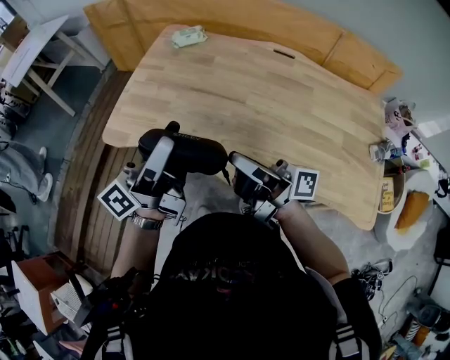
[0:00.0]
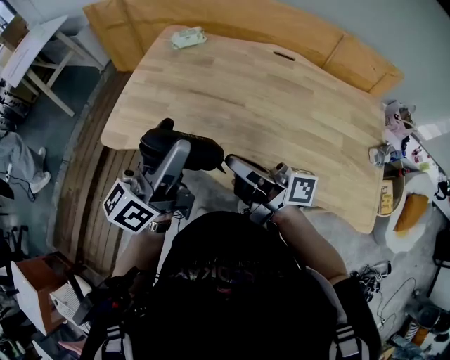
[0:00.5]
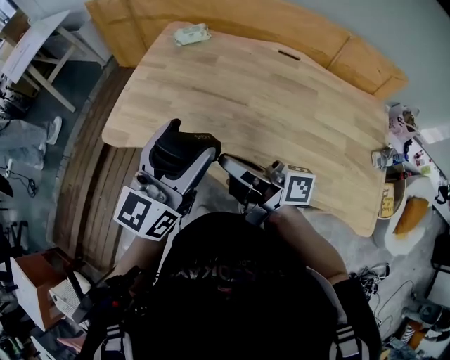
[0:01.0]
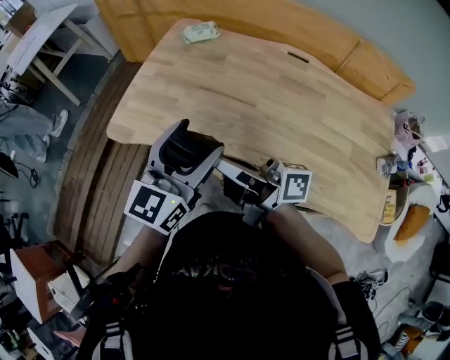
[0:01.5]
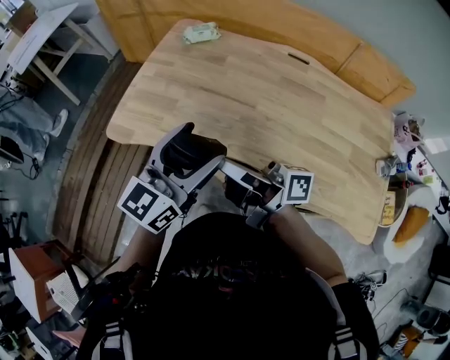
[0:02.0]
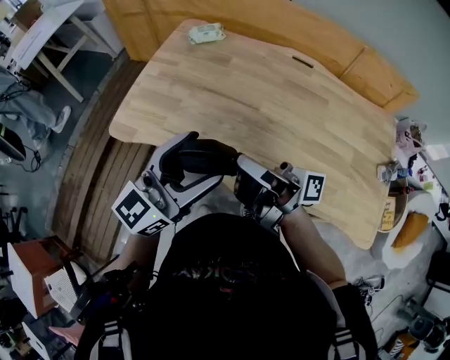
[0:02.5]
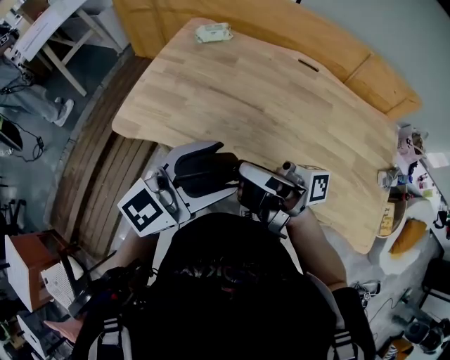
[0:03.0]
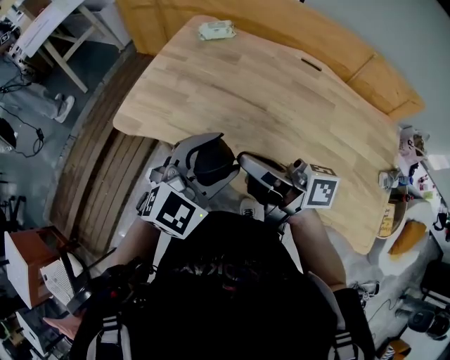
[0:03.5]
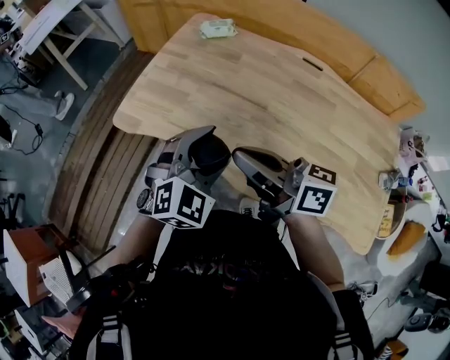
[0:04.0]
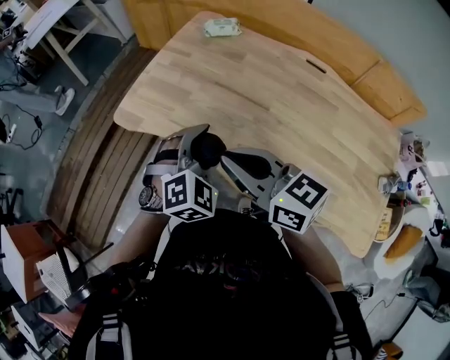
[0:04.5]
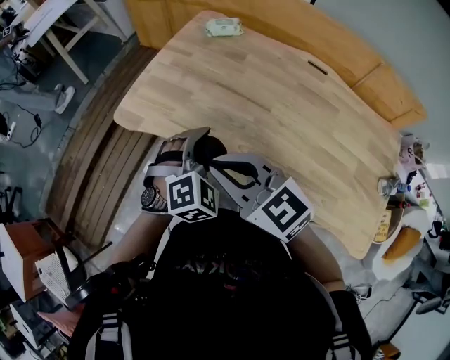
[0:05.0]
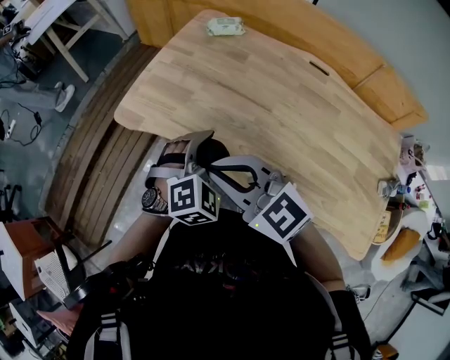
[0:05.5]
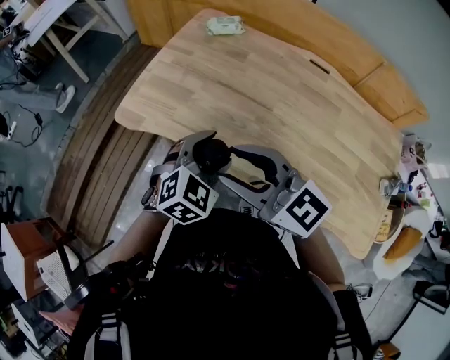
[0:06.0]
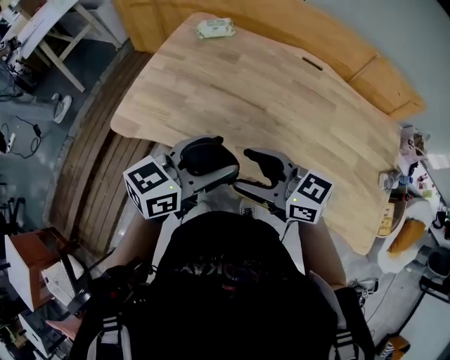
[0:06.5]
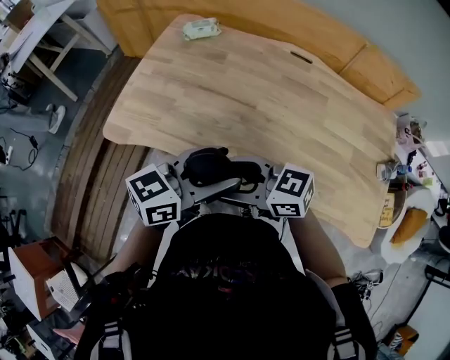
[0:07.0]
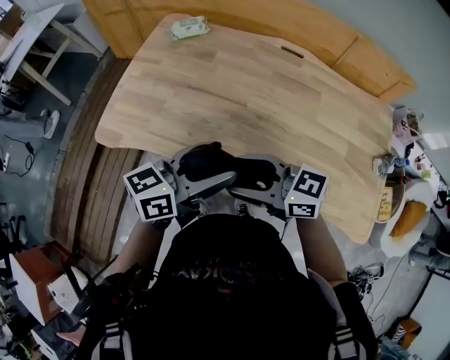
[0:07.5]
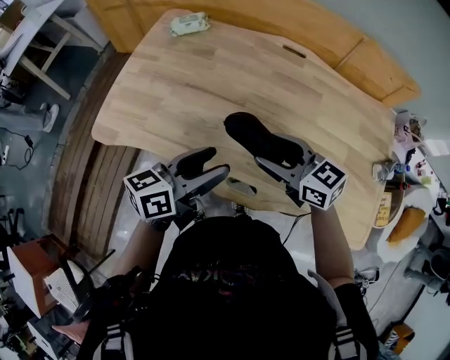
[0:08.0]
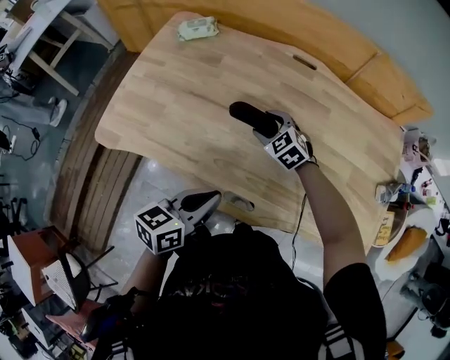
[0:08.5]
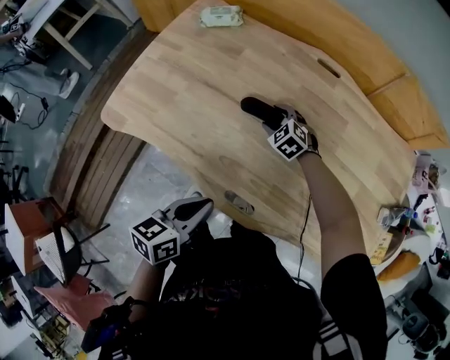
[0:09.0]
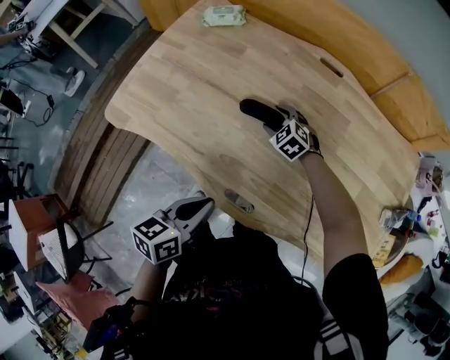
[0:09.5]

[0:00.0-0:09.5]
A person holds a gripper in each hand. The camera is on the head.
0:00.0 to 0:02.0: The left gripper changes place by approximately 5 cm, and rotates around the line of its fingers by roughly 50 degrees, clockwise from behind.
0:02.0 to 0:04.0: The right gripper changes its angle by some 30 degrees. Meanwhile the left gripper travels downward by about 5 cm, and rotates around the line of its fingers by some 40 degrees, clockwise from behind.
0:04.0 to 0:05.5: The left gripper shifts approximately 5 cm downward; the right gripper travels to the left by some 5 cm, and rotates around the line of its fingers by approximately 50 degrees, counterclockwise from behind.
0:05.5 to 0:07.5: The left gripper moves approximately 10 cm, and tips its fingers upward by roughly 40 degrees; the right gripper shifts by about 10 cm, swivels roughly 40 degrees, and opens.
0:07.5 to 0:09.5: The right gripper ends up about 40 cm from where it was, and tilts its fingers approximately 40 degrees downward. Meanwhile the left gripper shifts approximately 10 cm downward, rotates approximately 40 degrees, and closes.

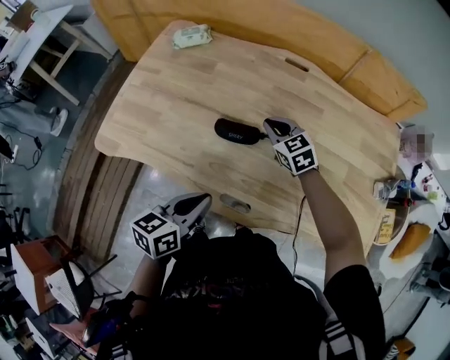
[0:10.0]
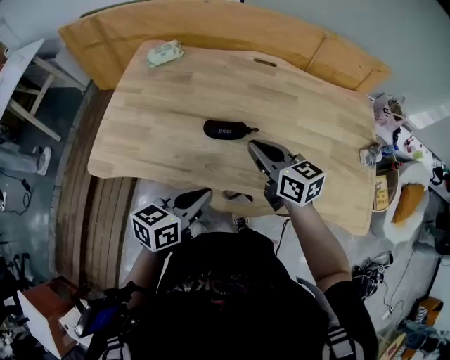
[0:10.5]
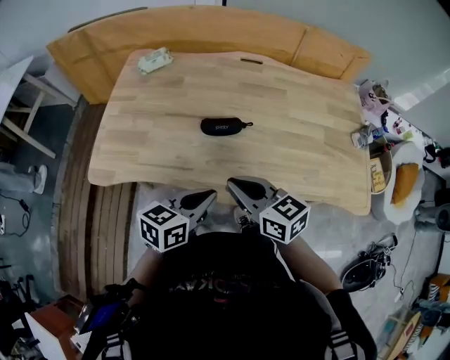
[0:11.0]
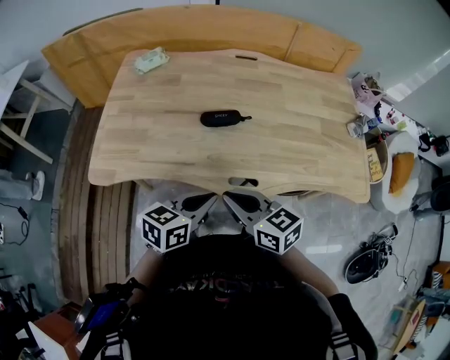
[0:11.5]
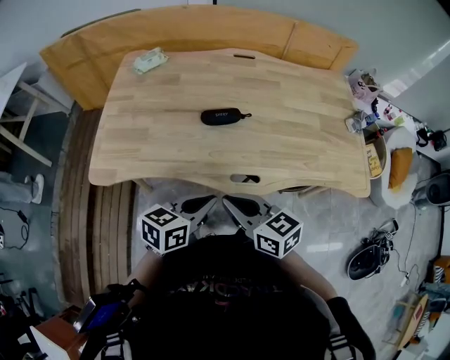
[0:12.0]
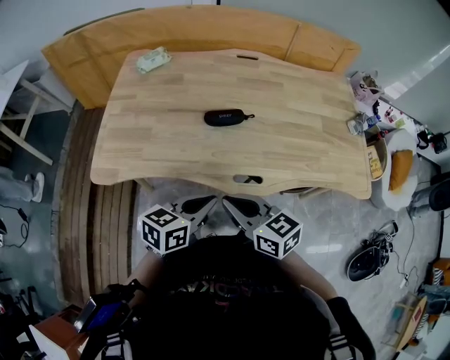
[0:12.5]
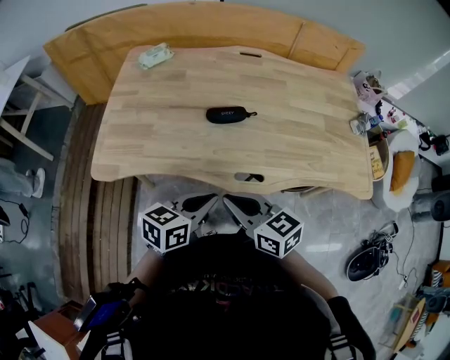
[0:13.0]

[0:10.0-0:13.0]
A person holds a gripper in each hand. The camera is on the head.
0:10.0 to 0:11.5: The left gripper heads backward, covering roughly 5 cm, and changes its angle by about 30 degrees, while the right gripper heads backward, covering some 30 cm, and turns by some 30 degrees.
0:11.5 to 0:13.0: There are only small adjustments of the grippers.

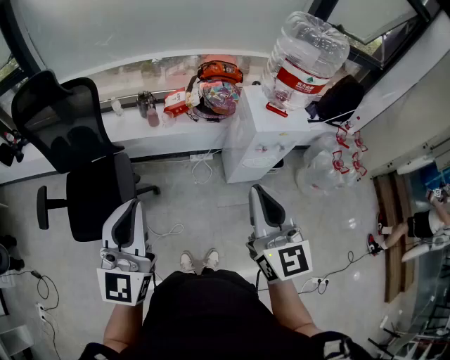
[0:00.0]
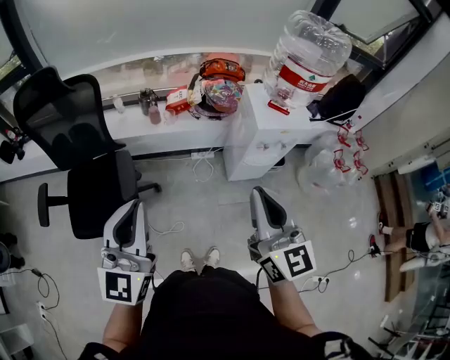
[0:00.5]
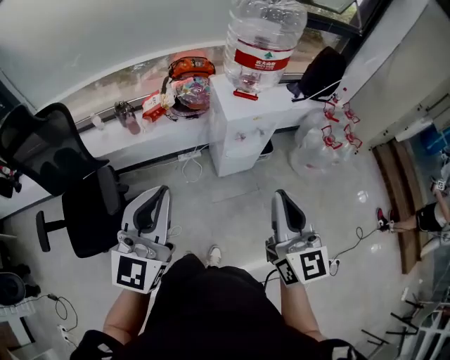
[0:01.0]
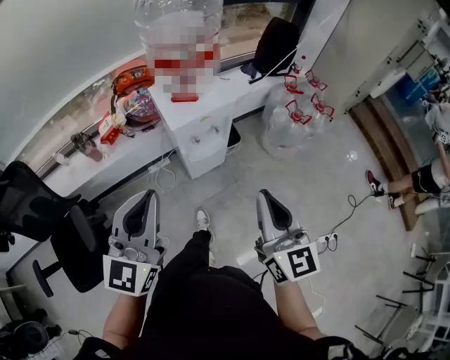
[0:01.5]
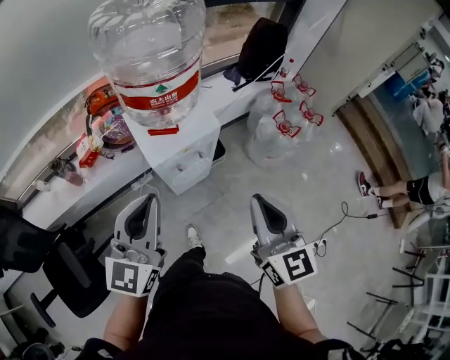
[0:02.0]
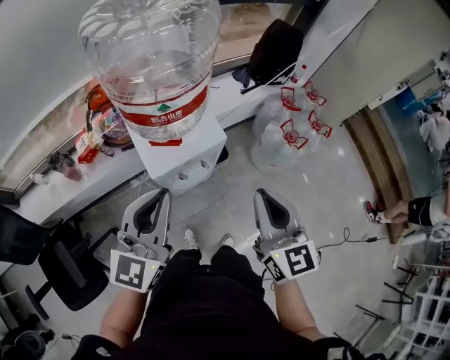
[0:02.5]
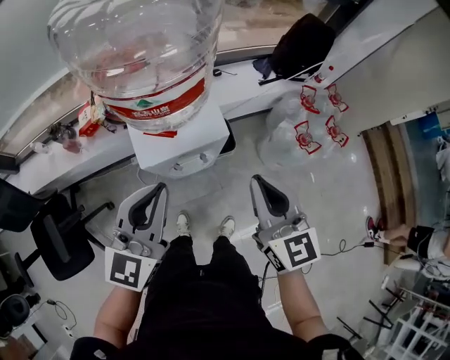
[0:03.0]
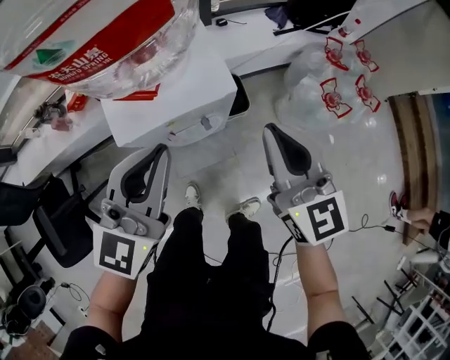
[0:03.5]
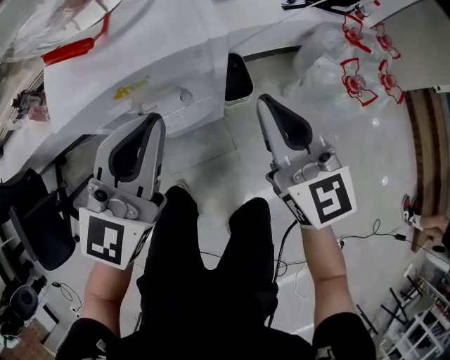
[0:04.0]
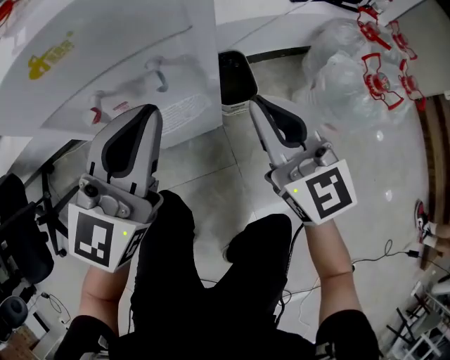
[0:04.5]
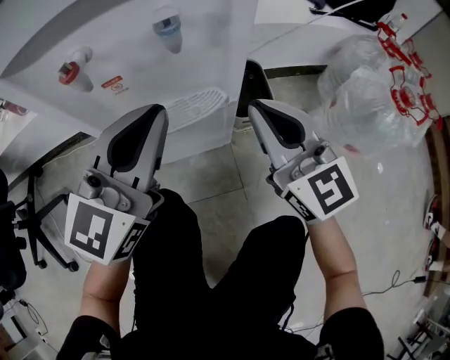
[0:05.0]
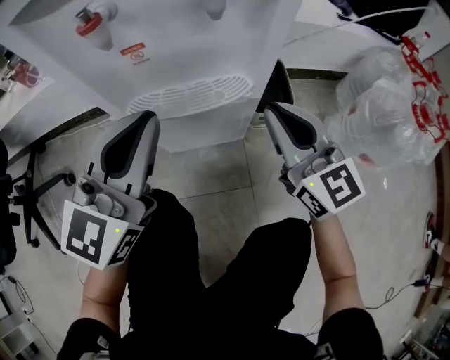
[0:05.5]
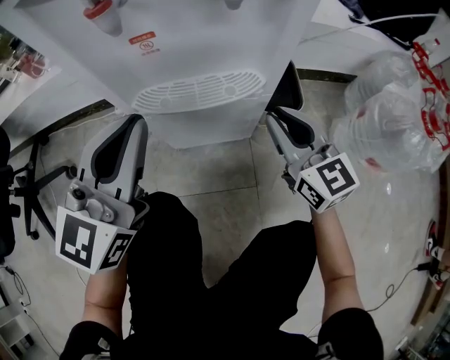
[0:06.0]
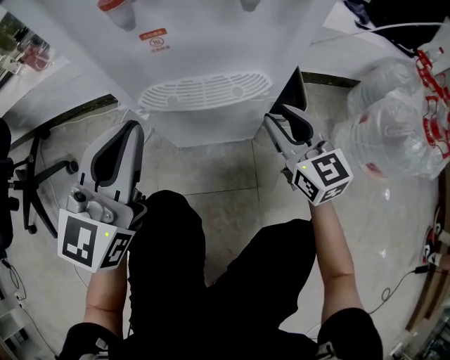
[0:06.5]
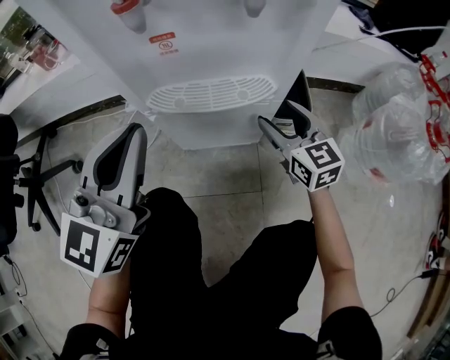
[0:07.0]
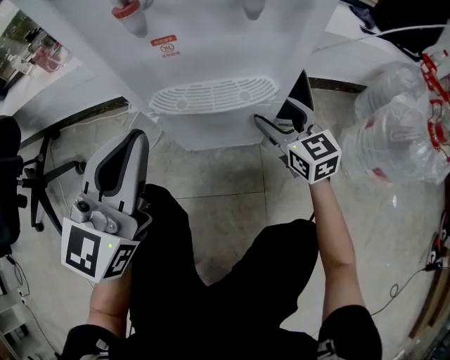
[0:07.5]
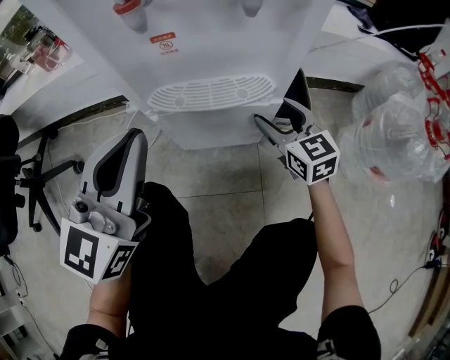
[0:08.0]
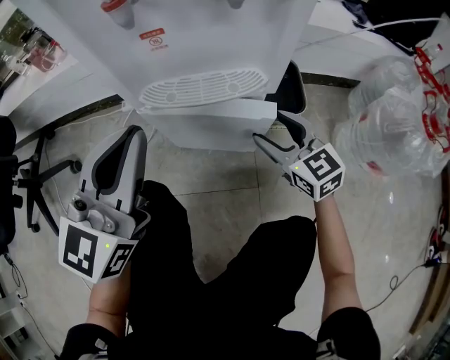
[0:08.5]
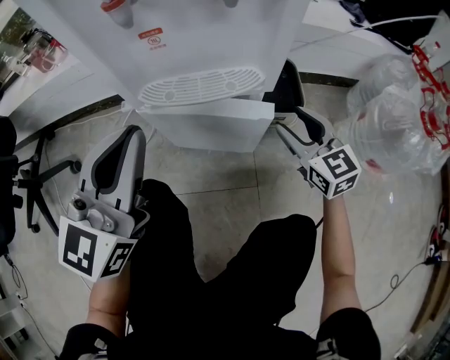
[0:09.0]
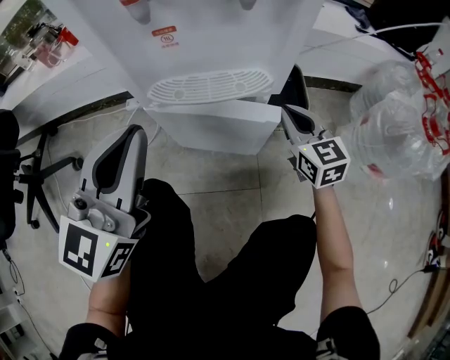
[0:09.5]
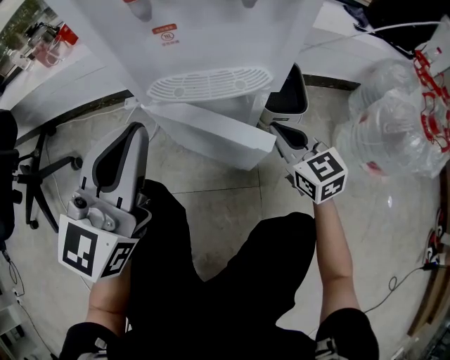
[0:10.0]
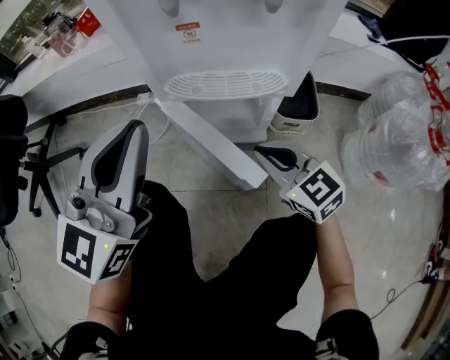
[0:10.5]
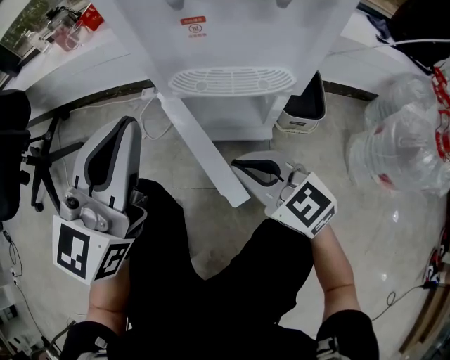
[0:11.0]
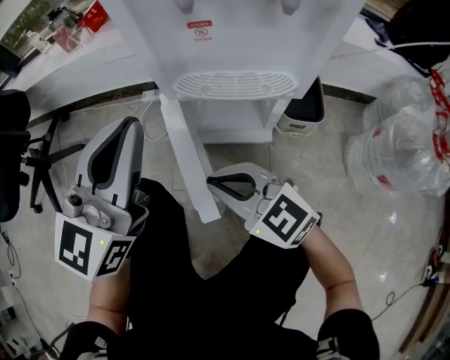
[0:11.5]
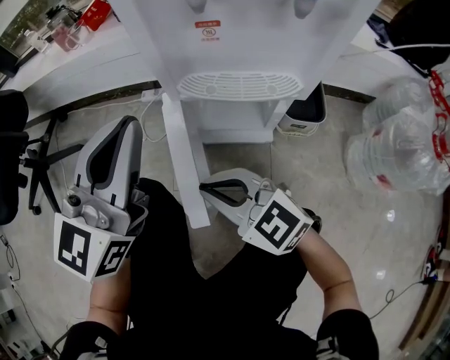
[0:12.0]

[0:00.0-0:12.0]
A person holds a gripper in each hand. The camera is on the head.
0:00.0 to 0:02.0: The right gripper changes place by approximately 35 cm, and changes its angle by some 30 degrees. The left gripper changes place by approximately 40 cm, and turns by roughly 30 degrees.
0:02.0 to 0:04.0: The left gripper travels downward, forward and to the right by roughly 35 cm. The right gripper is displaced downward and forward by roughly 35 cm, and turns by some 20 degrees.
0:04.0 to 0:06.0: Both grippers travel together downward, about 30 cm.
0:06.0 to 0:08.0: The right gripper heads downward and forward, covering roughly 10 cm, and opens its fingers.
0:08.0 to 0:10.0: The right gripper heads backward, covering approximately 5 cm, and closes its fingers.
0:10.0 to 0:12.0: The left gripper shifts roughly 5 cm to the left. The right gripper travels to the left by roughly 25 cm, and swivels approximately 40 degrees.

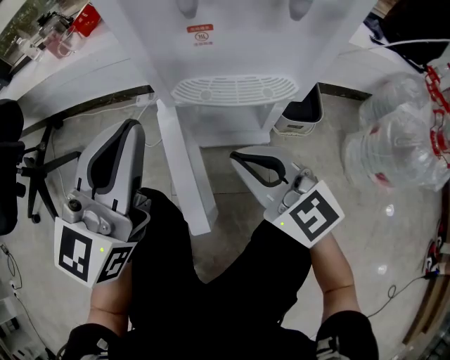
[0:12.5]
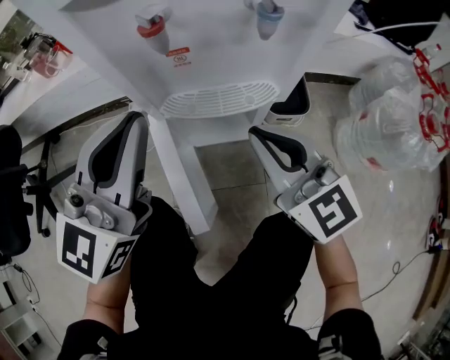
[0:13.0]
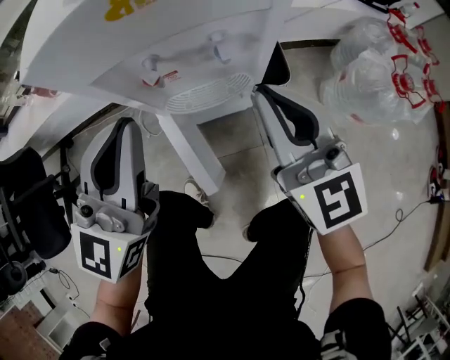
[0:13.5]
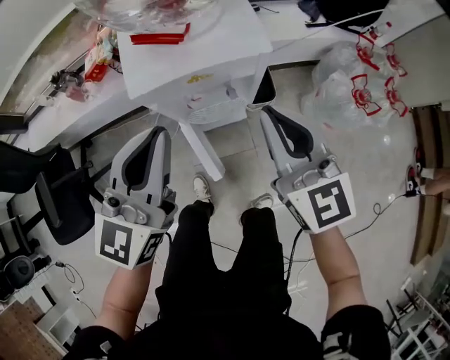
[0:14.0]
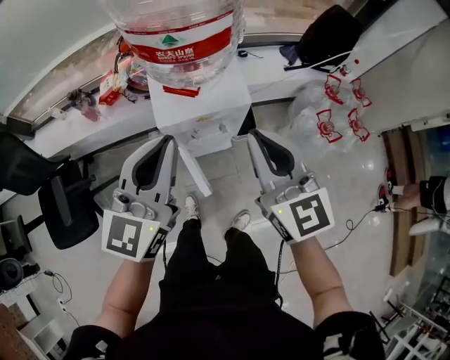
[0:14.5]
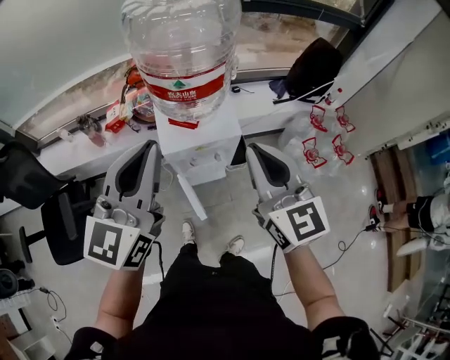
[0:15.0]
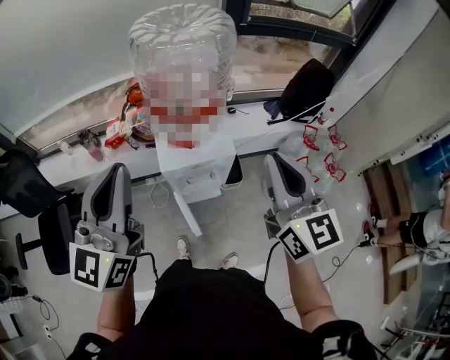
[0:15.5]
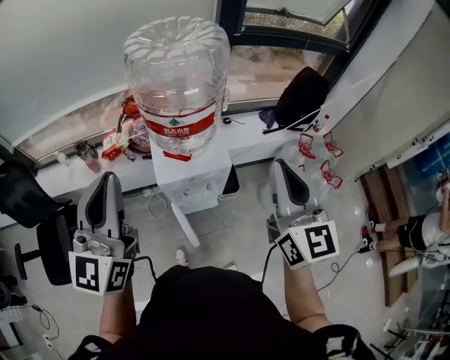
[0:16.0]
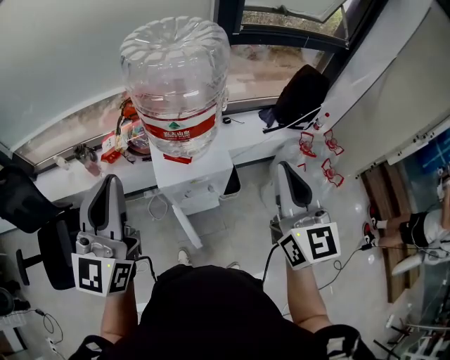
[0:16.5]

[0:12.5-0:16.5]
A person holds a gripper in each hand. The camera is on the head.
0:12.5 to 0:14.5: The grippers both shift upward by approximately 50 cm. The right gripper swivels about 40 degrees.
0:14.5 to 0:16.5: The right gripper is displaced upward and to the right by roughly 15 cm. The left gripper travels upward and to the left by approximately 15 cm.
